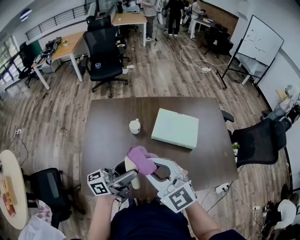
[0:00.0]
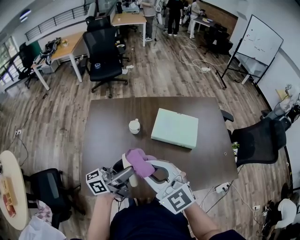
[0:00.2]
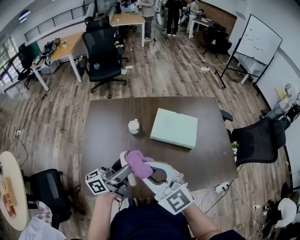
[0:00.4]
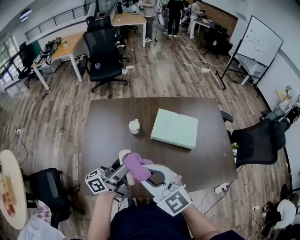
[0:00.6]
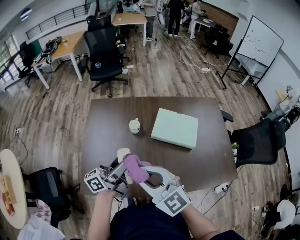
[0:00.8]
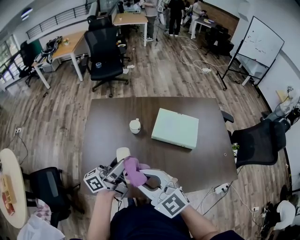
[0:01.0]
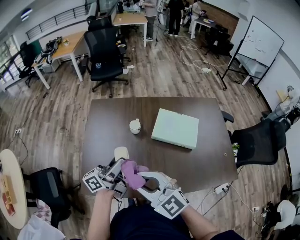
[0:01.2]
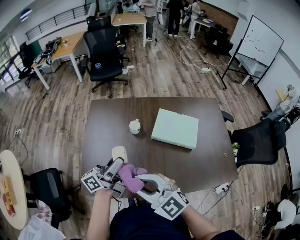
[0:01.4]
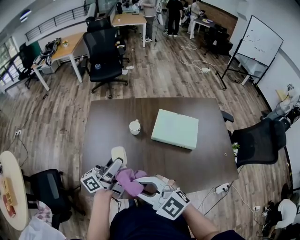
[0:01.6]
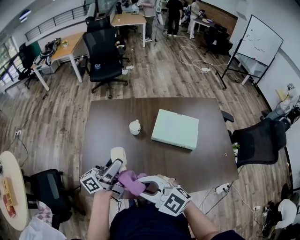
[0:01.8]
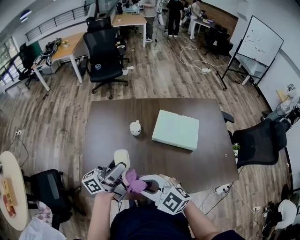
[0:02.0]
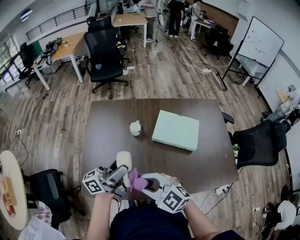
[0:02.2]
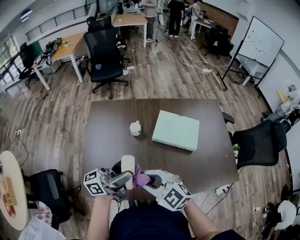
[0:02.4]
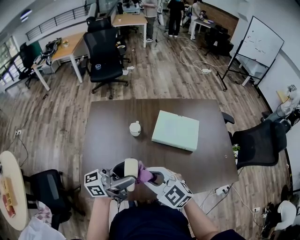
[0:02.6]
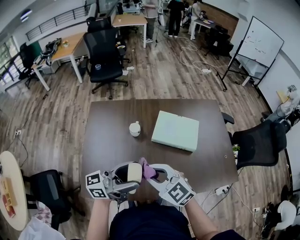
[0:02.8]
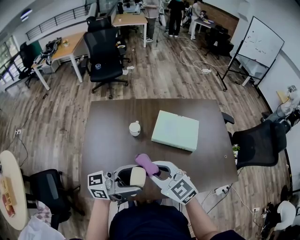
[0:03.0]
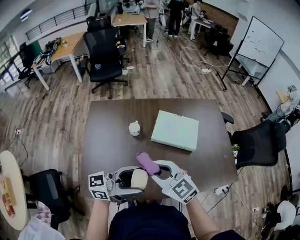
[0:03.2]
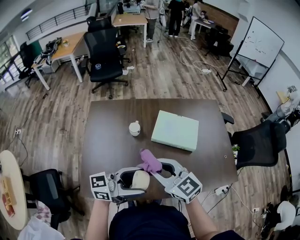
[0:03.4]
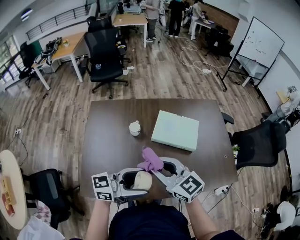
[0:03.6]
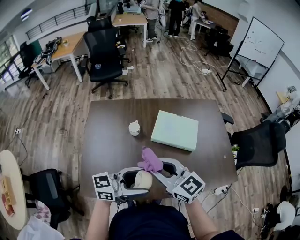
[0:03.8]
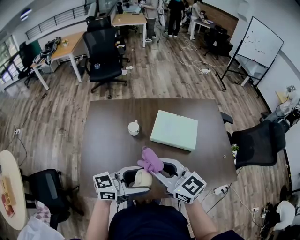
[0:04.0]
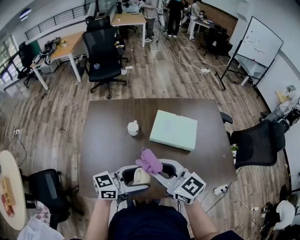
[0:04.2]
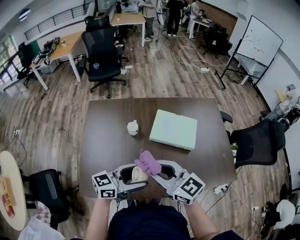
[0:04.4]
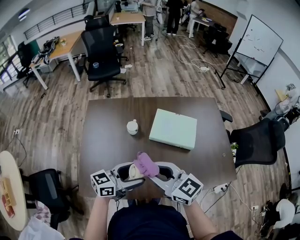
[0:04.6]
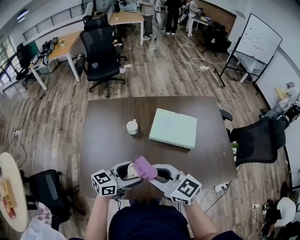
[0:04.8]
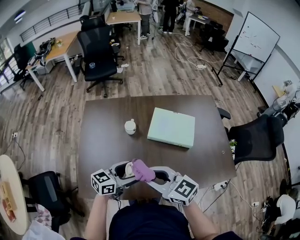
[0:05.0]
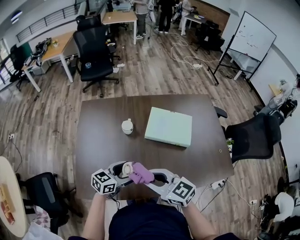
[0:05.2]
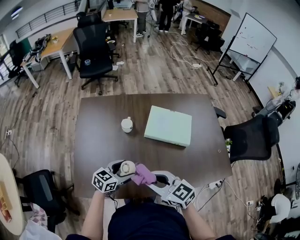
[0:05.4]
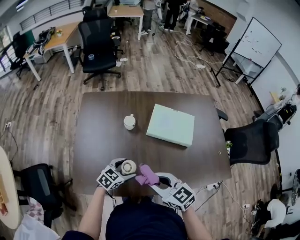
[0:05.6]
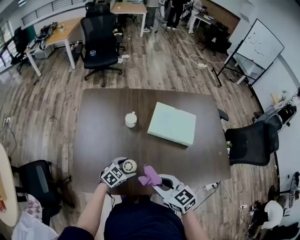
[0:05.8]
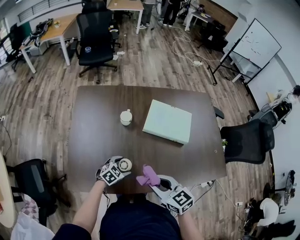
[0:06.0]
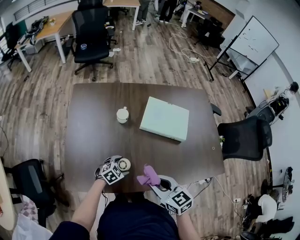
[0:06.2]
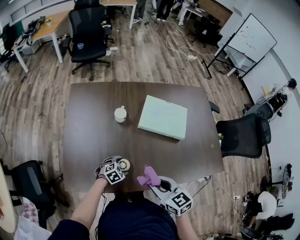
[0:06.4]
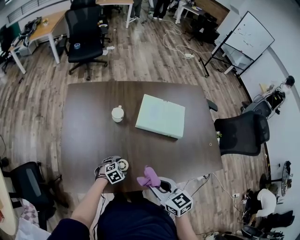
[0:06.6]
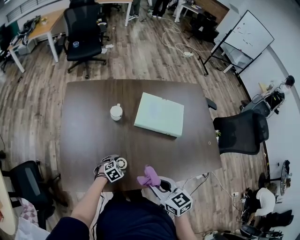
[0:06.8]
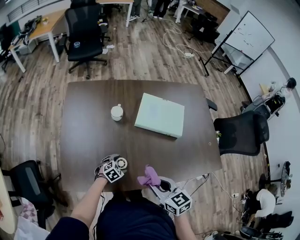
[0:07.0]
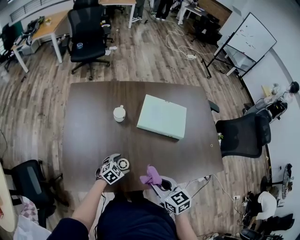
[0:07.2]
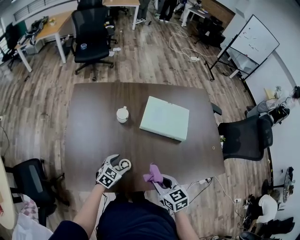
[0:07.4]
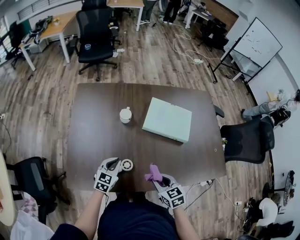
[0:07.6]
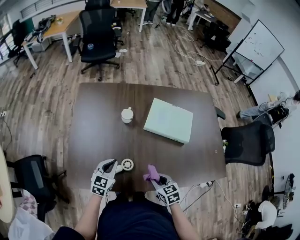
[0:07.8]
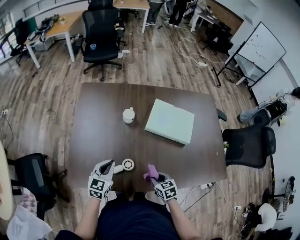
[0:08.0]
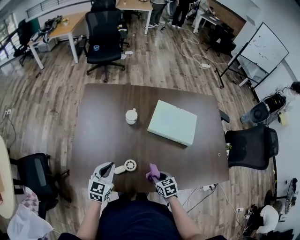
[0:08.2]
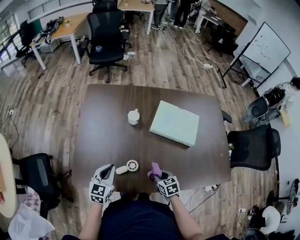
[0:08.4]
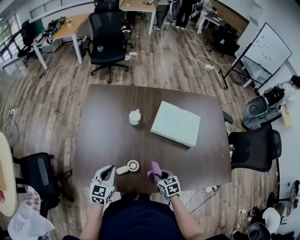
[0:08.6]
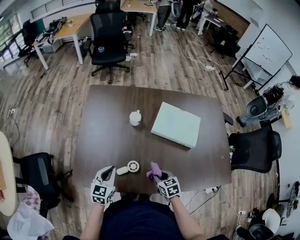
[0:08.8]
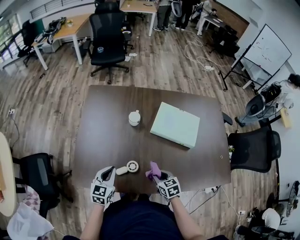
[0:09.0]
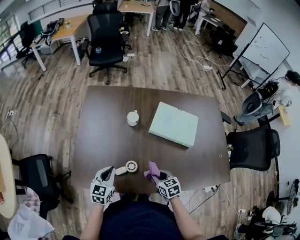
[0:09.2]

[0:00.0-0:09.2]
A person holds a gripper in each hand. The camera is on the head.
0:00.0 to 0:01.6: The right gripper travels backward and to the left by roughly 10 cm, while the left gripper heads to the left, covering roughly 5 cm.
0:01.6 to 0:03.0: The right gripper moves forward and to the right, approximately 10 cm, and rotates some 20 degrees; the left gripper moves backward and to the right, approximately 10 cm, and changes its angle by roughly 30 degrees.
0:03.0 to 0:04.6: The left gripper shifts approximately 10 cm downward, and changes its angle by about 20 degrees.
0:04.6 to 0:06.2: The right gripper heads downward, covering about 15 cm, and changes its angle by approximately 30 degrees. The left gripper shifts some 30 cm downward, and angles its fingers downward, by approximately 50 degrees.
0:06.2 to 0:07.6: The left gripper moves upward, some 10 cm, changes its angle by approximately 40 degrees, and closes up; the right gripper travels downward by approximately 10 cm.
0:07.6 to 0:09.2: The left gripper goes roughly 5 cm to the left; the right gripper moves downward, some 5 cm.

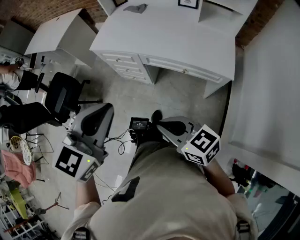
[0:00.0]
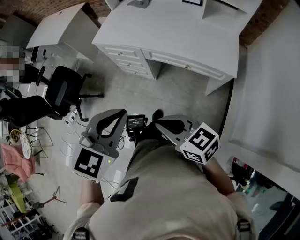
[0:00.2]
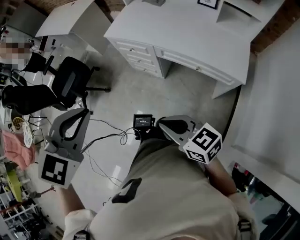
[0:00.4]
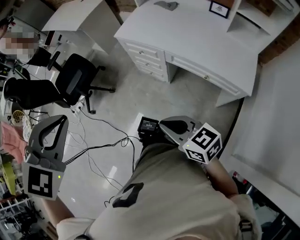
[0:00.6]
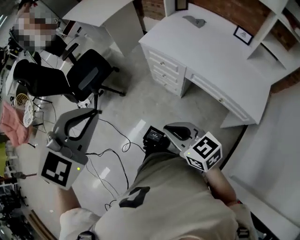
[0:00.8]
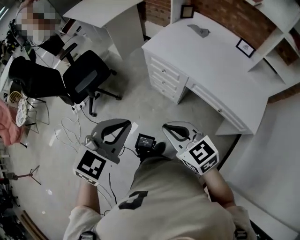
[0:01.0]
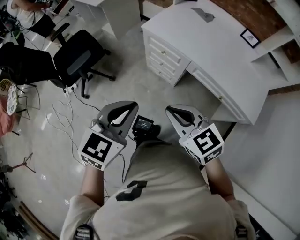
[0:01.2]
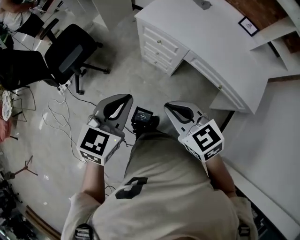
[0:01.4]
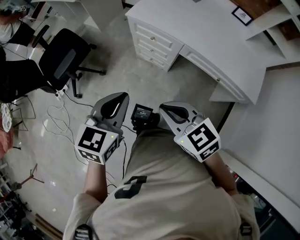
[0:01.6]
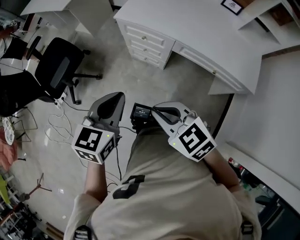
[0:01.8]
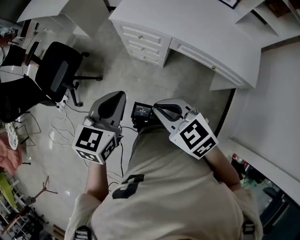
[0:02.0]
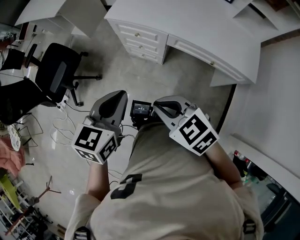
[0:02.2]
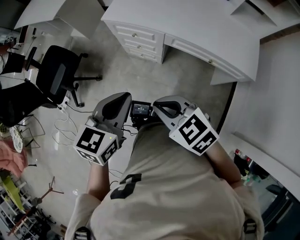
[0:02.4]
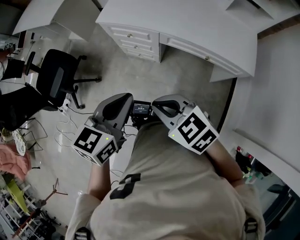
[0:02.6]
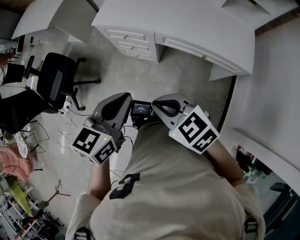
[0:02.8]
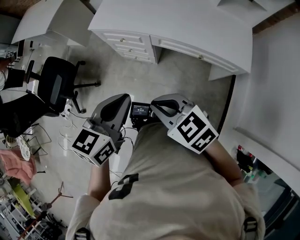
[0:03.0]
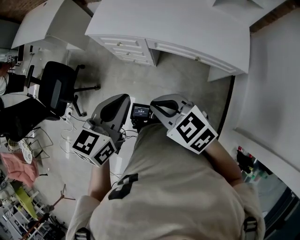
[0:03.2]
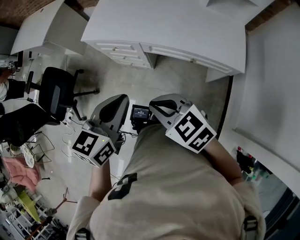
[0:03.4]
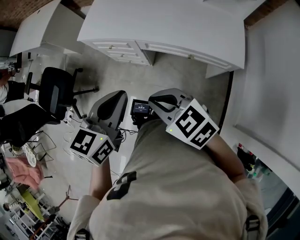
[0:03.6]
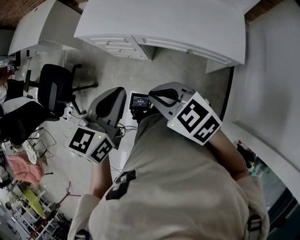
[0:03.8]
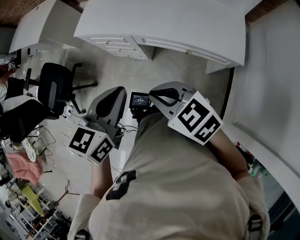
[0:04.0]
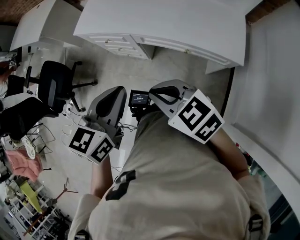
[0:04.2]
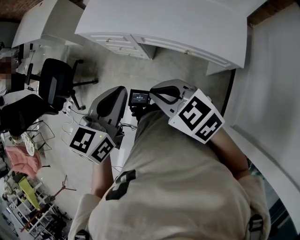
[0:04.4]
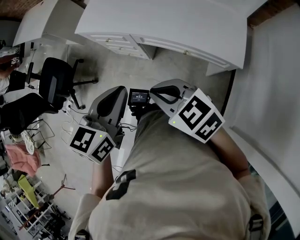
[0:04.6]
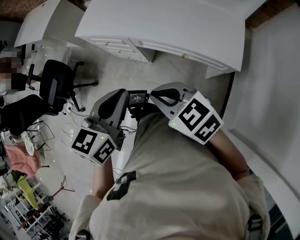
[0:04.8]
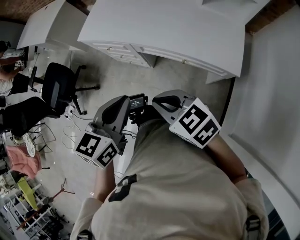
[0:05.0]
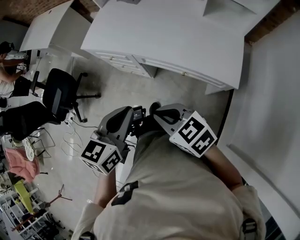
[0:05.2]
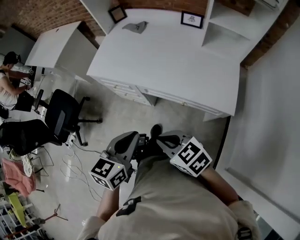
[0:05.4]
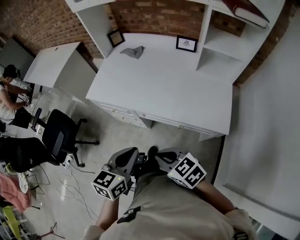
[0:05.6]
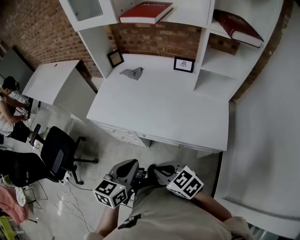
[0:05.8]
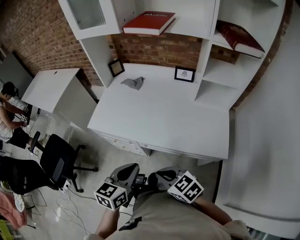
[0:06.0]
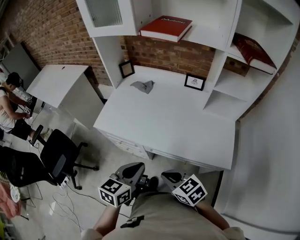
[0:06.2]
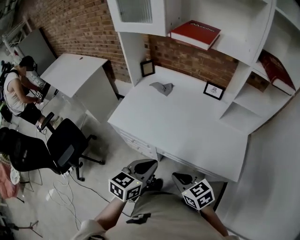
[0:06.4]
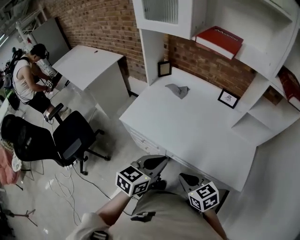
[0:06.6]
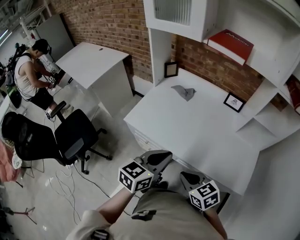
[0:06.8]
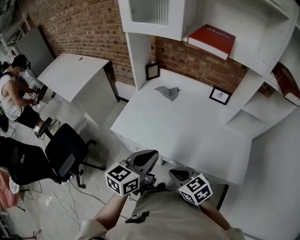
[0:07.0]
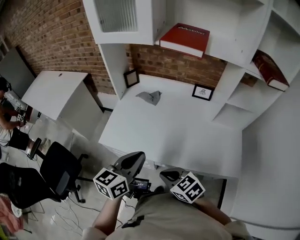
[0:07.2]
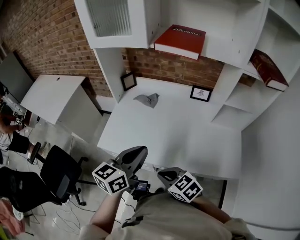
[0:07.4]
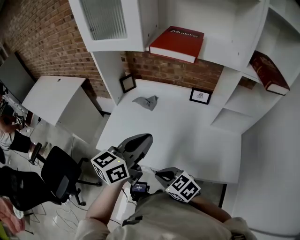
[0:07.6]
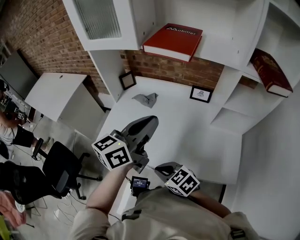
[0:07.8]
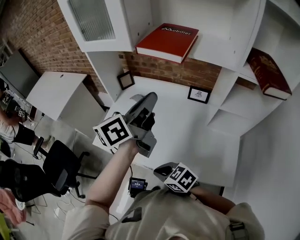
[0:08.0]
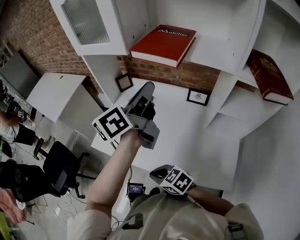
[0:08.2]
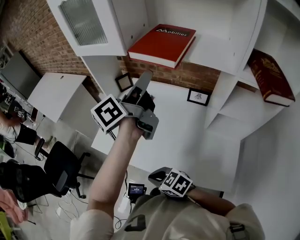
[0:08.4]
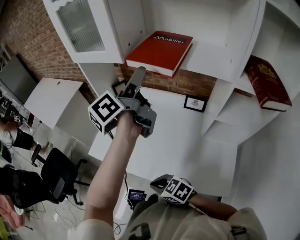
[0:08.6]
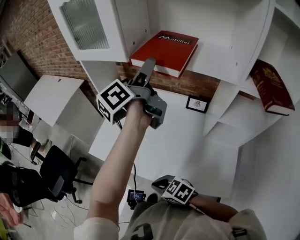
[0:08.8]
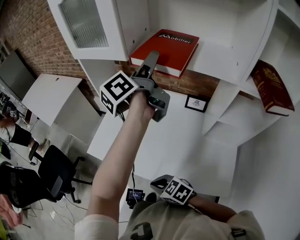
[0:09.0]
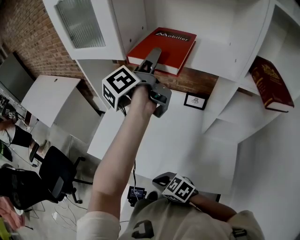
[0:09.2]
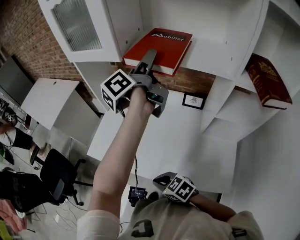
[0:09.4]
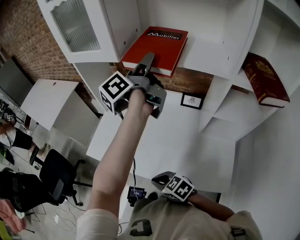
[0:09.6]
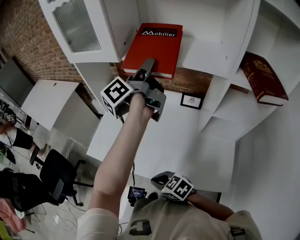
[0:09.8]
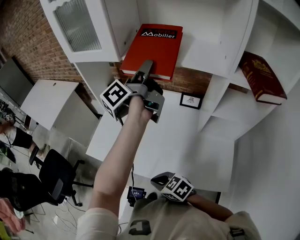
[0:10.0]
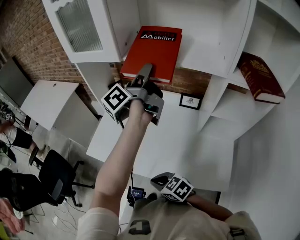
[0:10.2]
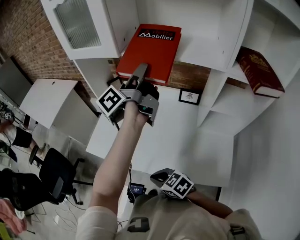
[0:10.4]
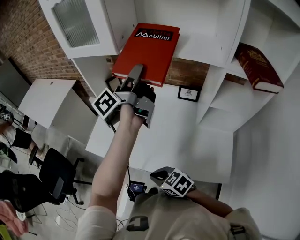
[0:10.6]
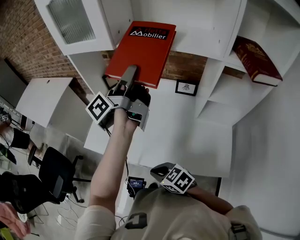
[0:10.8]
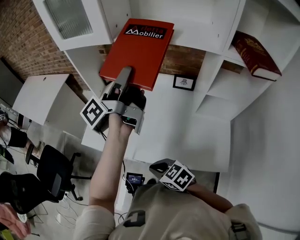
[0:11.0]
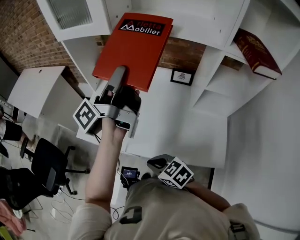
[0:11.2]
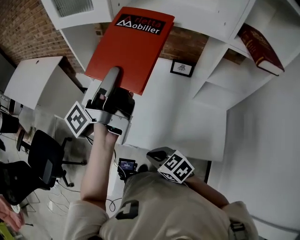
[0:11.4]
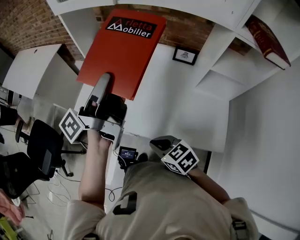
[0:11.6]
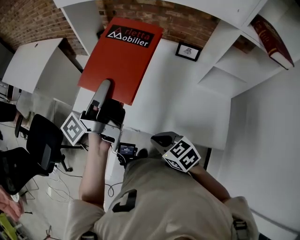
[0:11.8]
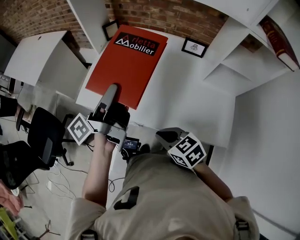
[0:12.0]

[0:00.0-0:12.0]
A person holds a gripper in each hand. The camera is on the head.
0:00.0 to 0:01.6: The right gripper heads to the left and forward, covering roughly 25 cm, and rotates some 20 degrees. Meanwhile the left gripper travels to the left, forward and downward by some 25 cm.
0:01.6 to 0:03.0: The grippers both shift to the right by roughly 15 cm.
0:03.0 to 0:04.4: The grippers both shift to the right by about 10 cm.
0:04.4 to 0:06.0: Both grippers travel together forward, some 10 cm.
0:06.0 to 0:07.6: The right gripper shifts about 15 cm forward. Meanwhile the left gripper is displaced forward and upward by roughly 25 cm, and changes its angle by about 20 degrees.
0:07.6 to 0:09.0: The right gripper travels to the right by roughly 5 cm. Meanwhile the left gripper travels forward, to the right and upward by some 30 cm, rotates approximately 50 degrees, and opens up.
0:09.0 to 0:10.4: The left gripper changes place by about 5 cm, and closes.
0:10.4 to 0:12.0: The left gripper is displaced to the left, downward and backward by roughly 30 cm.

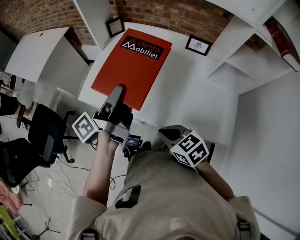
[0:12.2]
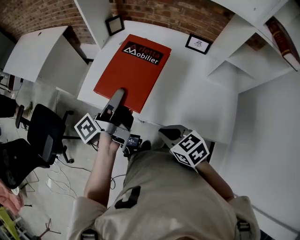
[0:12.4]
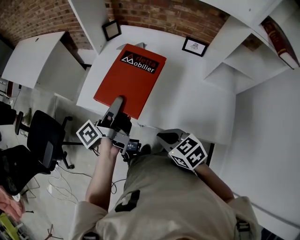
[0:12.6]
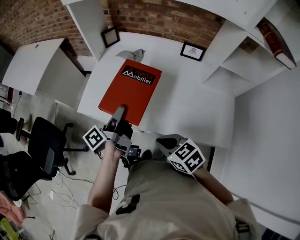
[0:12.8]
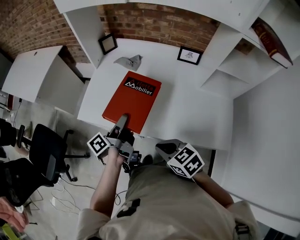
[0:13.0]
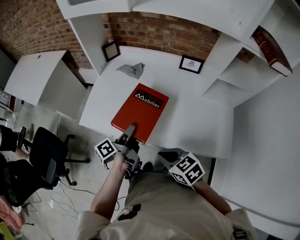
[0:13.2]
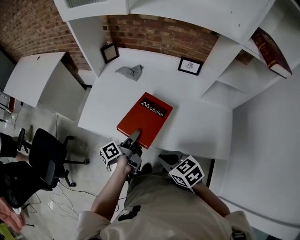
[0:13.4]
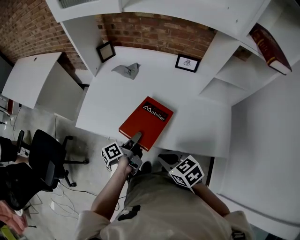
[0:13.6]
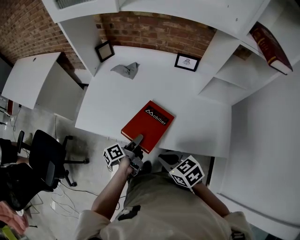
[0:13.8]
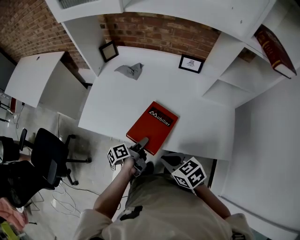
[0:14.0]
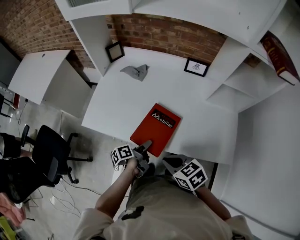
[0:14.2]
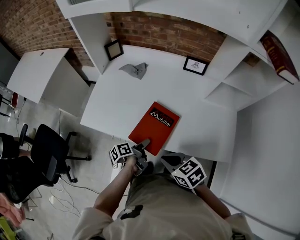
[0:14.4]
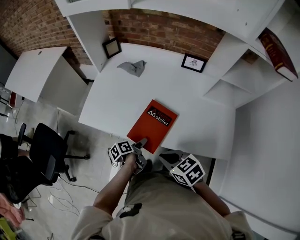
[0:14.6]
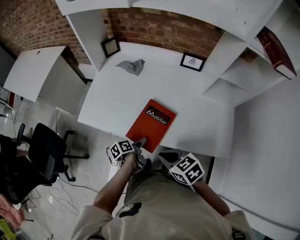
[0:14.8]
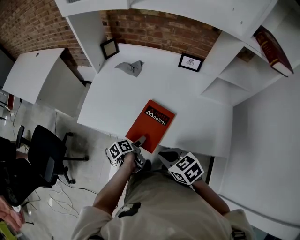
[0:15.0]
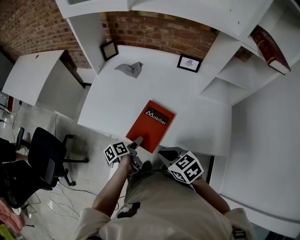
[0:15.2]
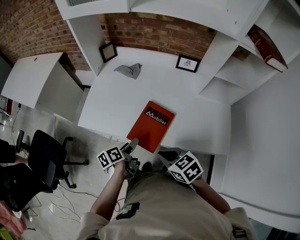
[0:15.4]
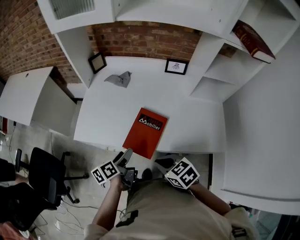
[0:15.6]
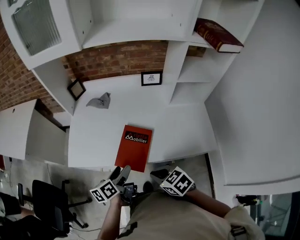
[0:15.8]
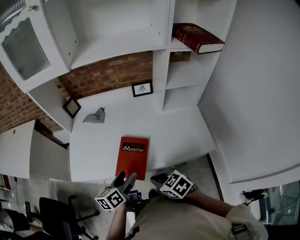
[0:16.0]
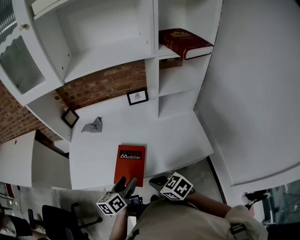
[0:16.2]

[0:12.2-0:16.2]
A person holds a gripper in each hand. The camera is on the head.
0:12.2 to 0:13.6: The left gripper heads downward, covering roughly 20 cm, and rotates approximately 30 degrees.
0:13.6 to 0:14.8: The left gripper is displaced downward by about 10 cm, and rotates approximately 20 degrees.
0:14.8 to 0:16.2: The left gripper heads upward, covering about 20 cm, and rotates around the line of its fingers by approximately 50 degrees, clockwise from behind.
